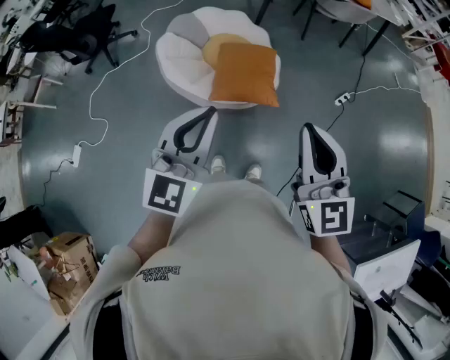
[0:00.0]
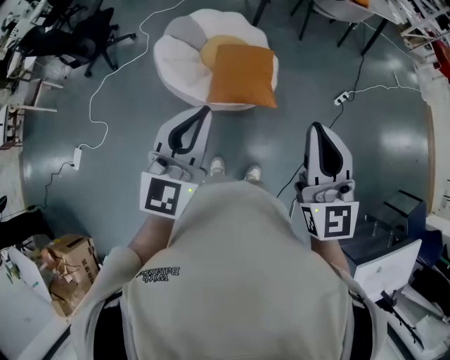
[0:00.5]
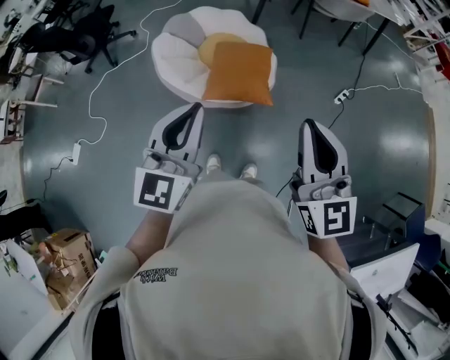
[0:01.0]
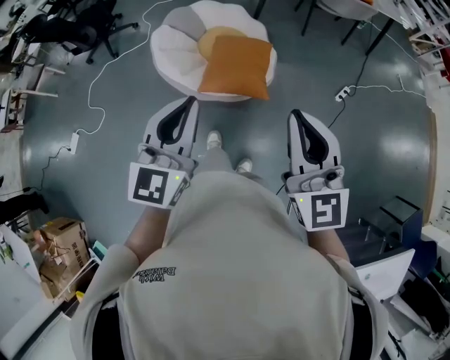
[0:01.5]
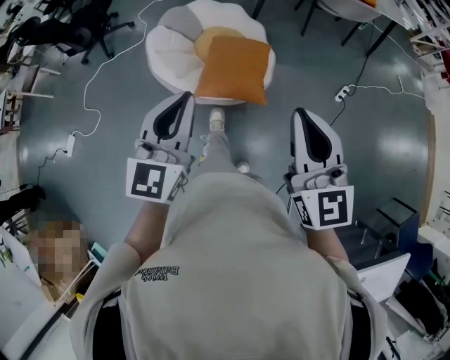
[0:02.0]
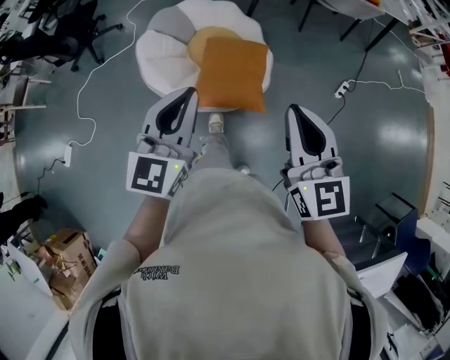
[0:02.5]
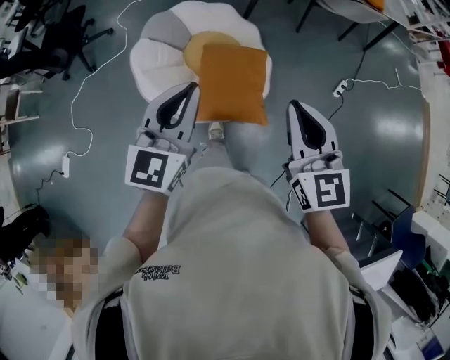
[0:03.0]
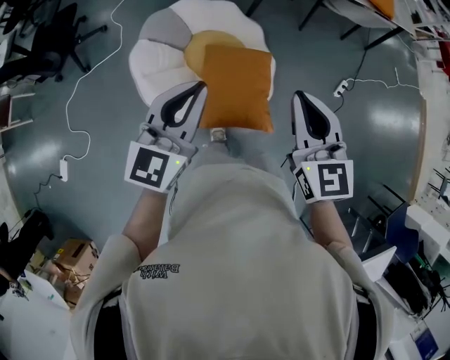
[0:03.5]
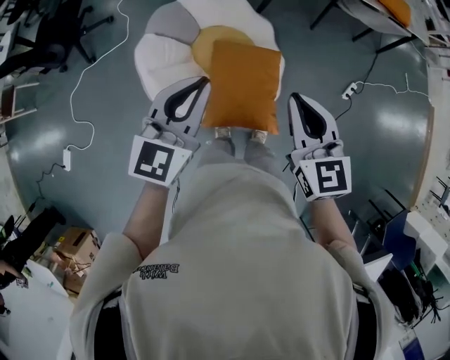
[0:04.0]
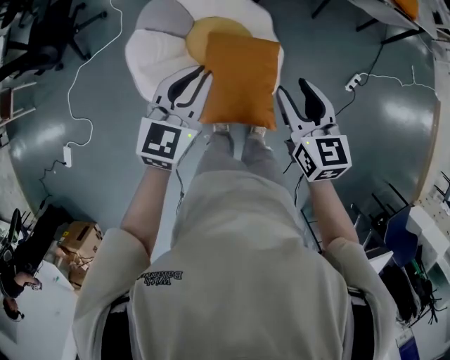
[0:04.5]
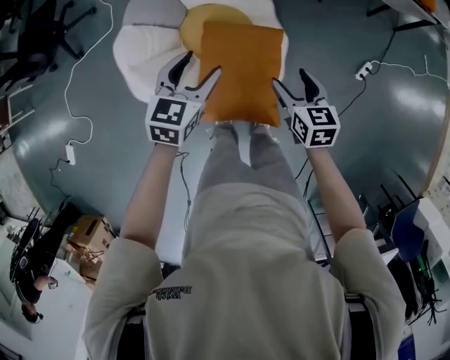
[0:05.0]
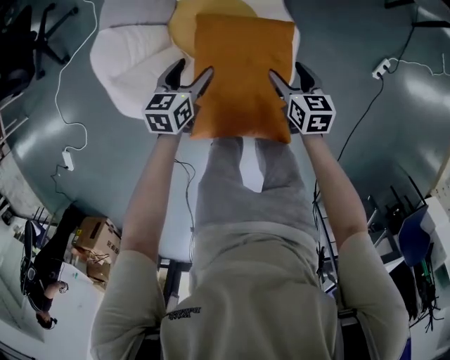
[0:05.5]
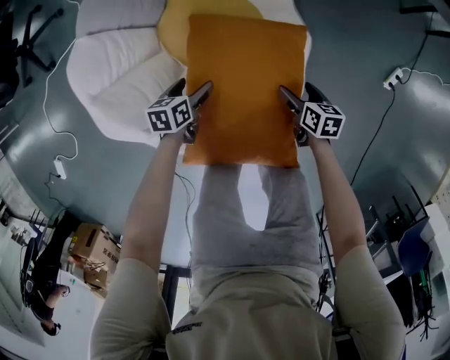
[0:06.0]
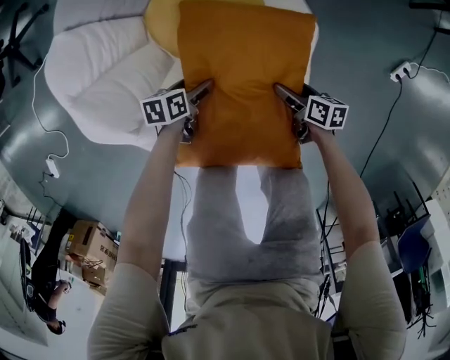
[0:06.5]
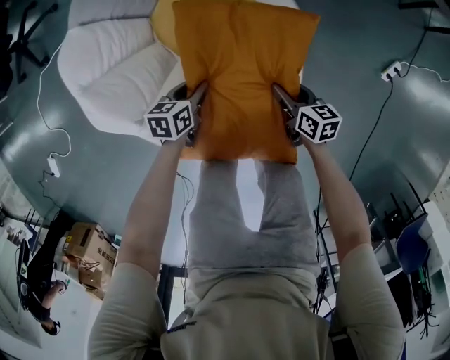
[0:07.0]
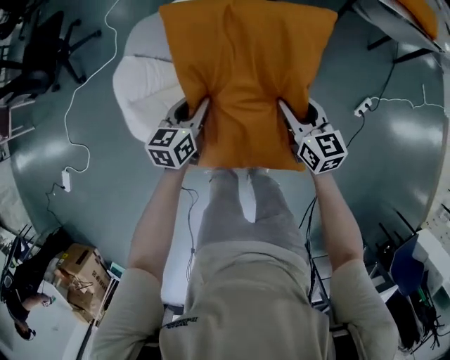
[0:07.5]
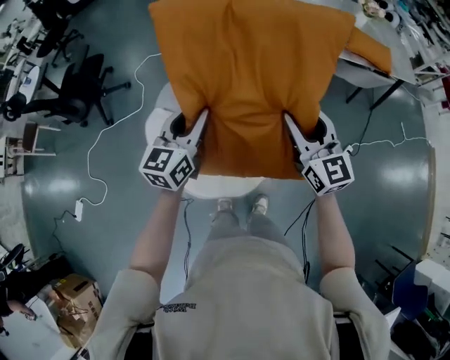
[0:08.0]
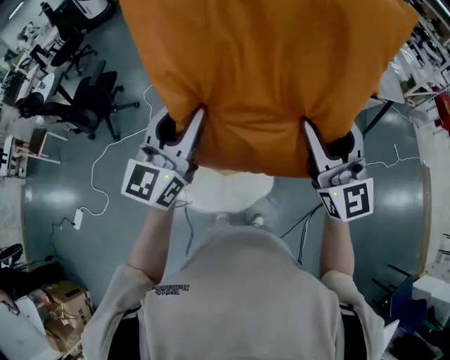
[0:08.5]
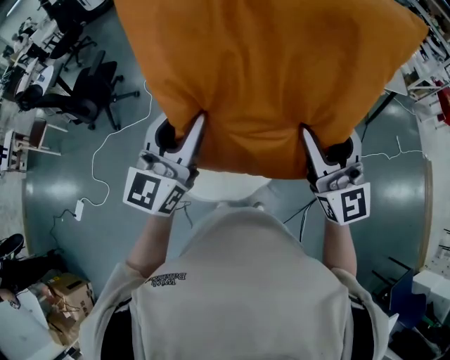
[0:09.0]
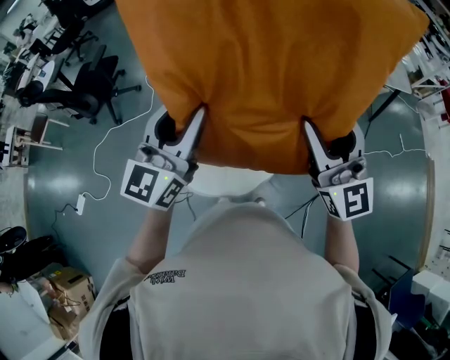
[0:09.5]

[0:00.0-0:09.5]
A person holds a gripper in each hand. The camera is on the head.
0:00.0 to 0:02.0: The right gripper goes about 10 cm to the right and forward, while the left gripper travels forward by roughly 5 cm.
0:02.0 to 0:04.0: Both grippers travel together forward, about 35 cm. The right gripper swivels roughly 20 degrees.
0:04.0 to 0:05.5: Both grippers travel together downward, approximately 50 cm. The right gripper changes its angle by roughly 30 degrees, and opens. The left gripper changes its angle by some 40 degrees, and opens.
0:05.5 to 0:07.5: The right gripper is displaced upward by approximately 20 cm, and rotates about 20 degrees. The left gripper travels downward and back again, some 30 cm each way, and closes up.
0:07.5 to 0:09.5: The two grippers go some 50 cm upward. The left gripper tilts its fingers about 40 degrees upward. The right gripper angles its fingers upward, by roughly 40 degrees.

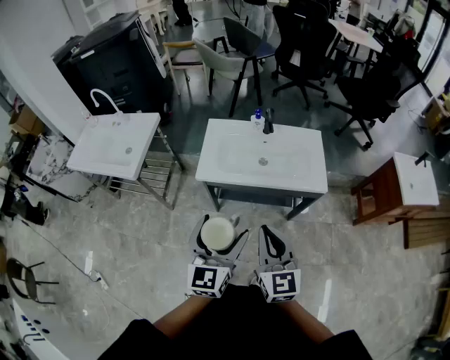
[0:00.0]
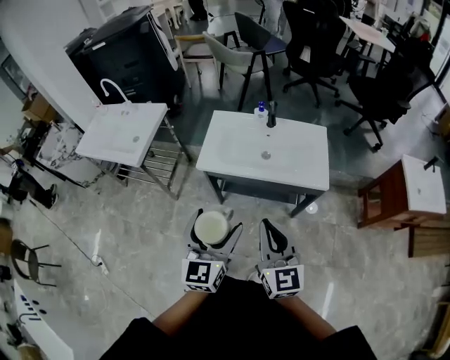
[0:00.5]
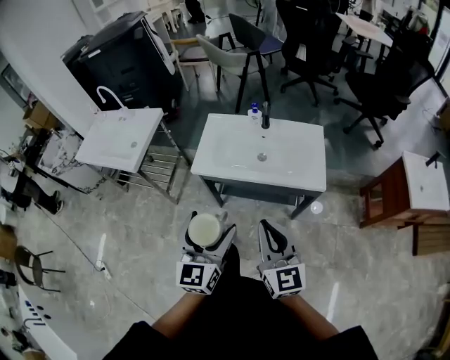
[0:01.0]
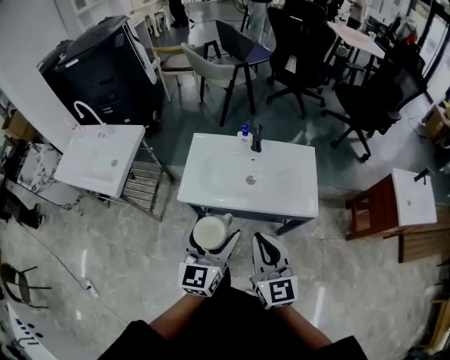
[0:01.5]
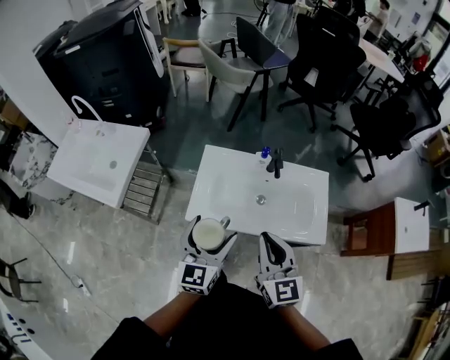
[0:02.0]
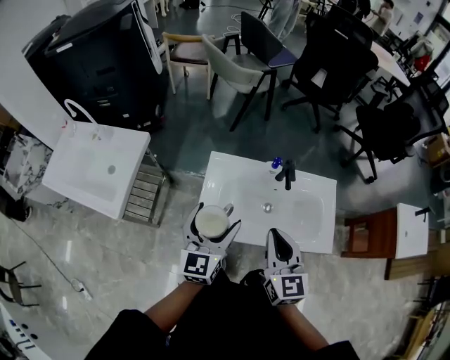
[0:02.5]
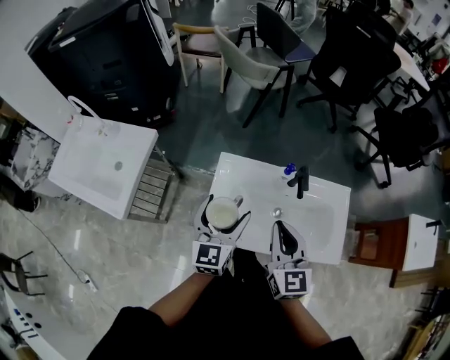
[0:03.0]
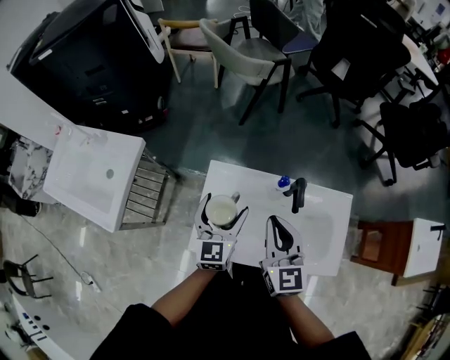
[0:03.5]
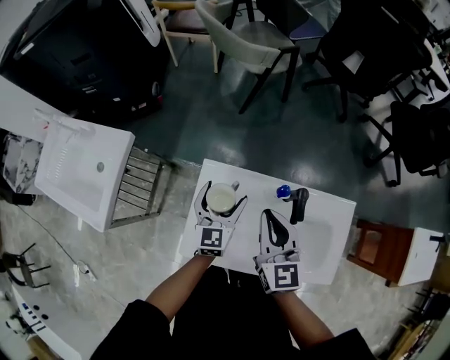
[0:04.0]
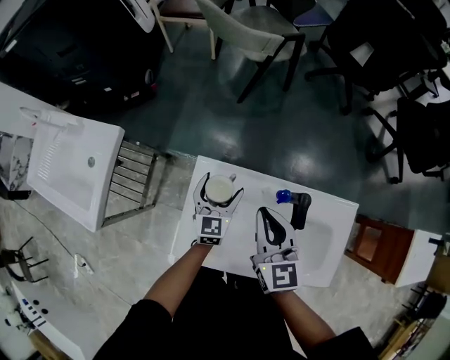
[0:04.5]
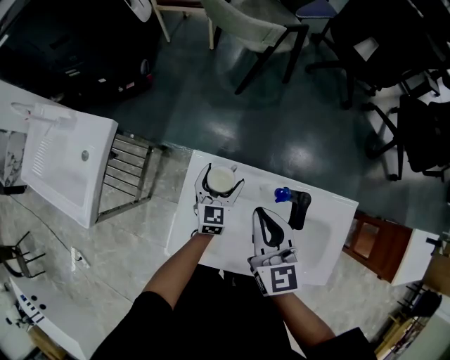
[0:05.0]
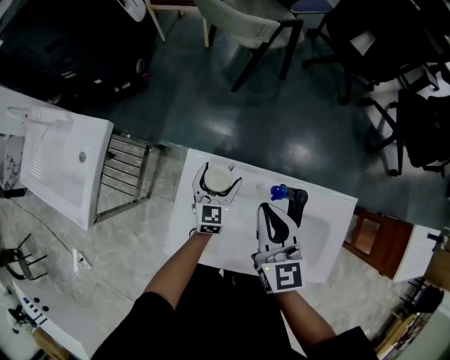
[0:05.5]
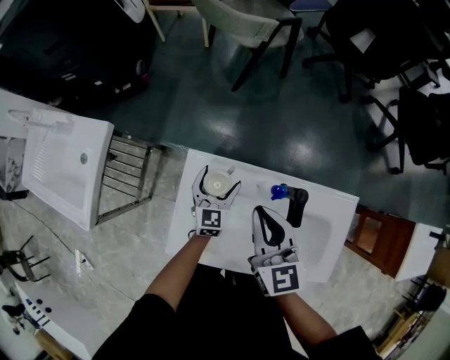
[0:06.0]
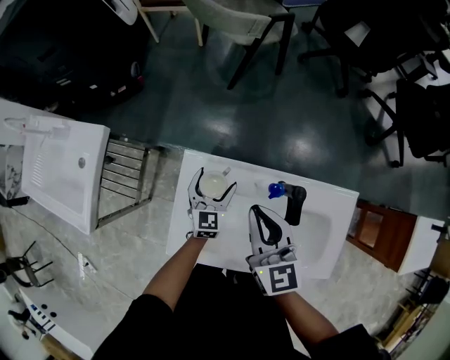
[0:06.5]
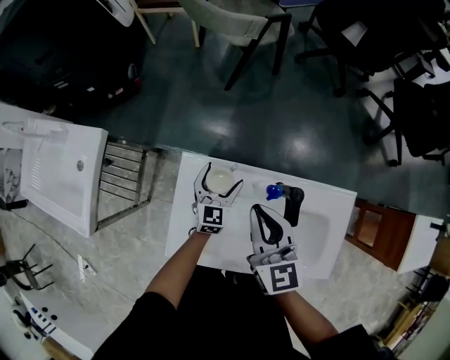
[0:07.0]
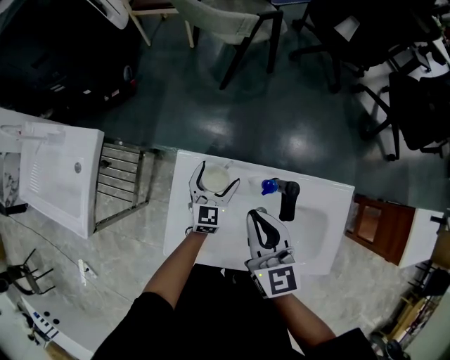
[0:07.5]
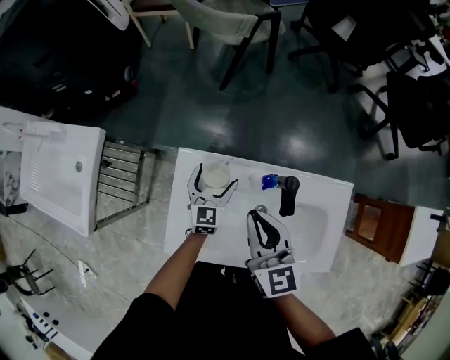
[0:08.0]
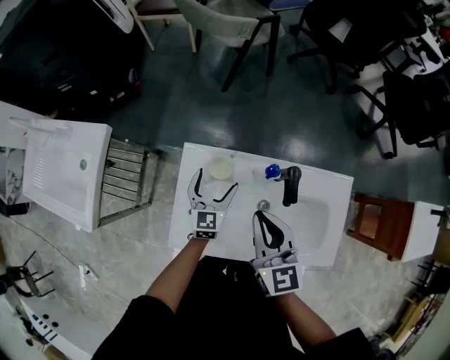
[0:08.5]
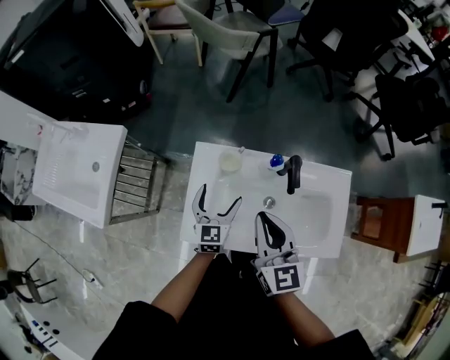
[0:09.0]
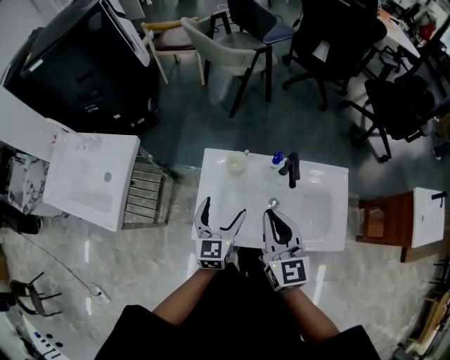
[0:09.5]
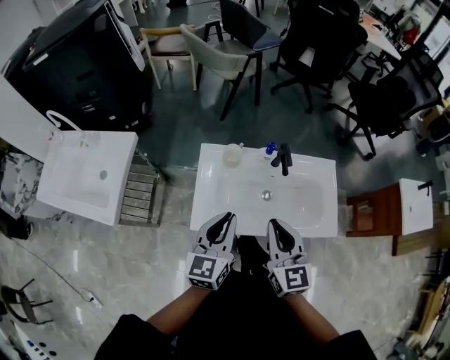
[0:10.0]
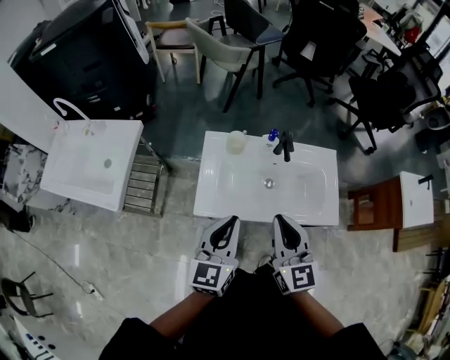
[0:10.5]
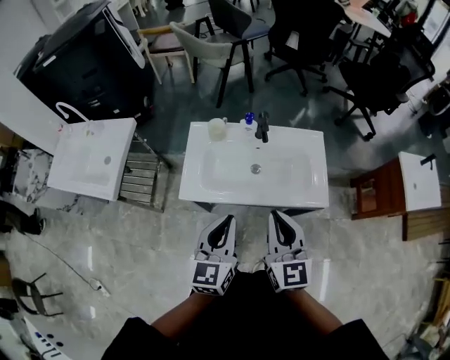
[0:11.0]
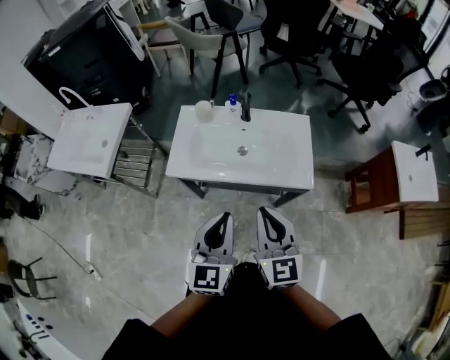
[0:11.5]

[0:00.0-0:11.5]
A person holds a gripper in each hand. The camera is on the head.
0:00.0 to 0:02.0: Both grippers travel together forward, roughly 25 cm.
0:02.0 to 0:04.0: The left gripper shifts some 40 cm forward and downward. Meanwhile the right gripper moves forward, approximately 35 cm.
0:04.0 to 0:06.0: The left gripper travels downward by about 15 cm, while the right gripper ends up roughly 5 cm from where it was.
0:06.0 to 0:07.5: The grippers stay close to where they were, moving slightly.
0:07.5 to 0:09.5: The right gripper goes some 15 cm backward and upward. The left gripper is displaced backward and upward by roughly 25 cm.
0:09.5 to 0:11.5: The left gripper shifts some 40 cm backward, to the right and upward, and closes up; the right gripper moves backward and to the right, about 35 cm.

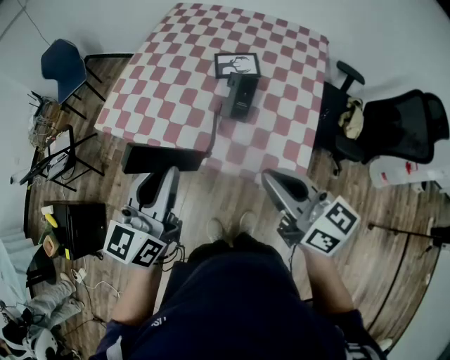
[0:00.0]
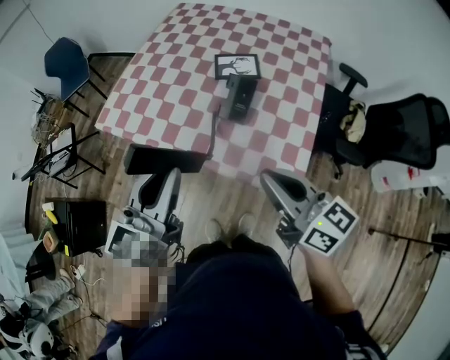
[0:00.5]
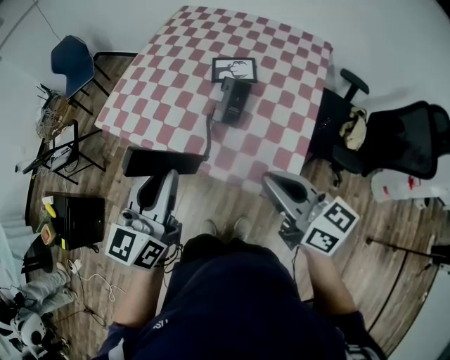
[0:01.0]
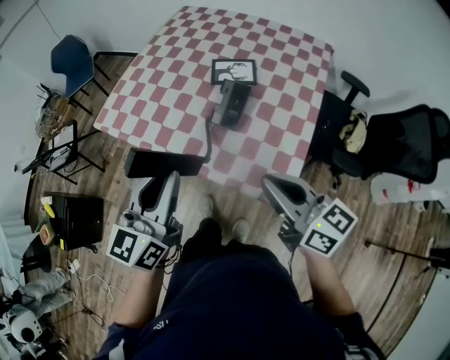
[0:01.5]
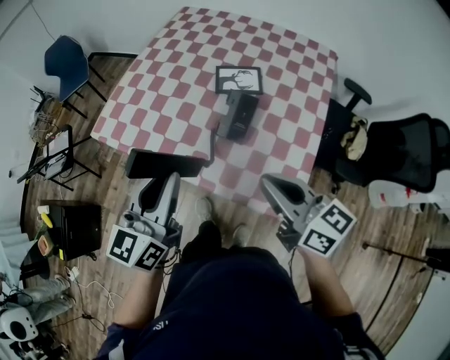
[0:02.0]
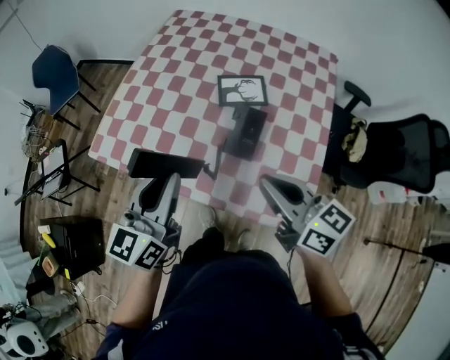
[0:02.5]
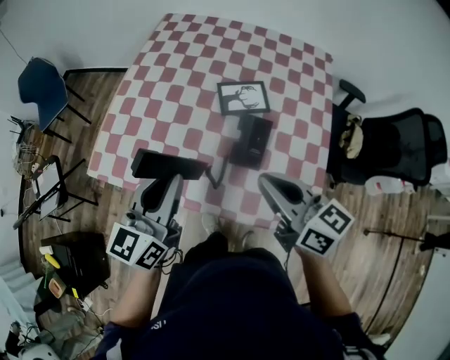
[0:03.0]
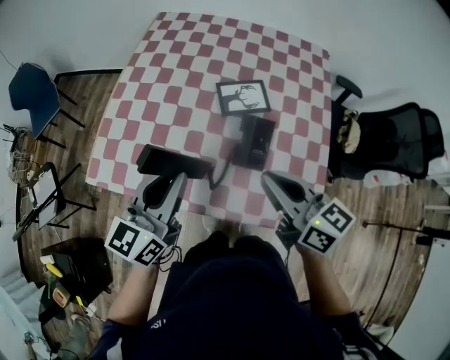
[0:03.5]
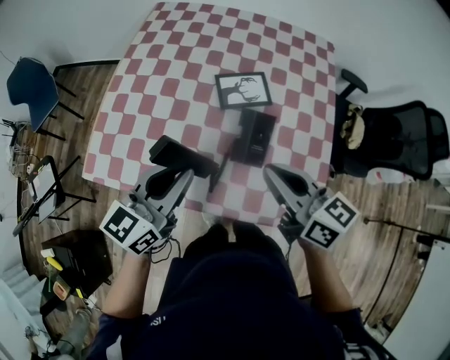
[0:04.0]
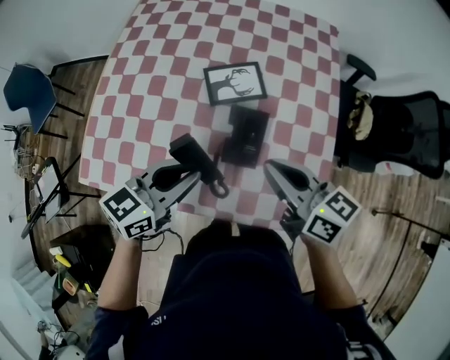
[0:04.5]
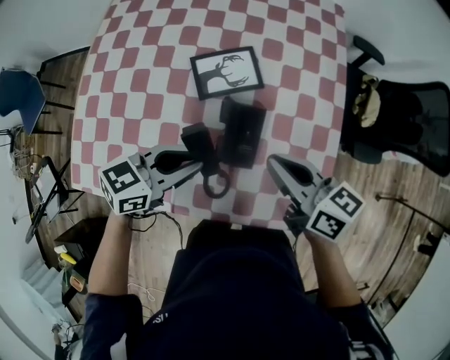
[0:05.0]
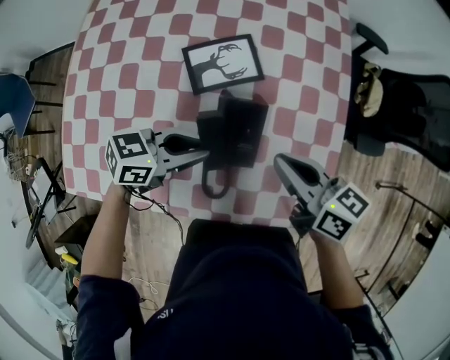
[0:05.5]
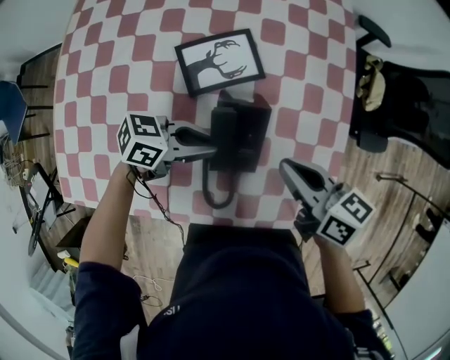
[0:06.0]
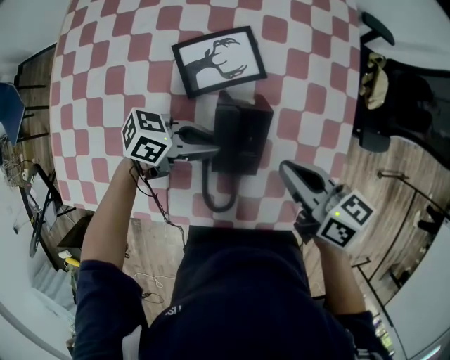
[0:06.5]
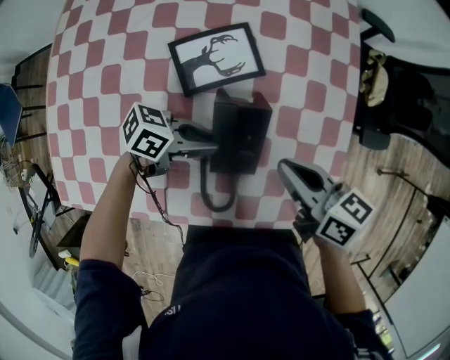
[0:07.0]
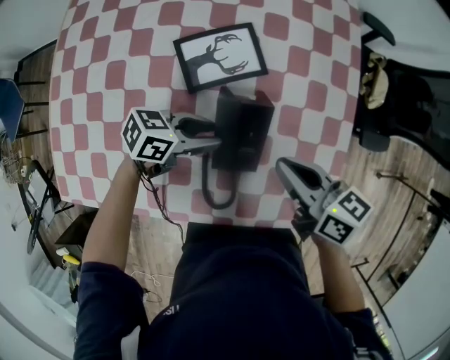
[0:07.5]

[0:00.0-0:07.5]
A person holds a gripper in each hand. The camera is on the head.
0:00.0 to 0:02.0: Both grippers travel together forward, approximately 5 cm.
0:02.0 to 0:04.0: The left gripper travels forward by roughly 15 cm, and turns by some 30 degrees. The right gripper shifts some 15 cm forward and to the left.
0:04.0 to 0:05.5: The two grippers go about 15 cm downward. The left gripper swivels approximately 50 degrees.
0:05.5 to 0:07.5: The left gripper goes about 10 cm downward, and opens.
